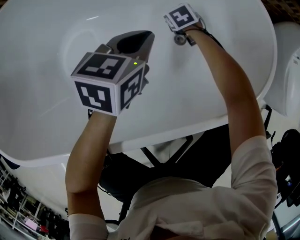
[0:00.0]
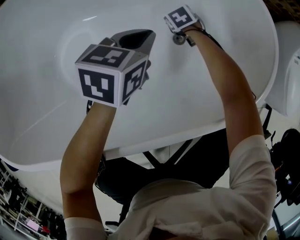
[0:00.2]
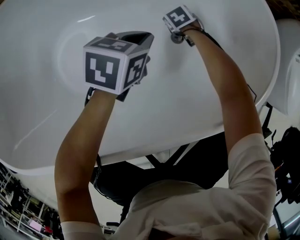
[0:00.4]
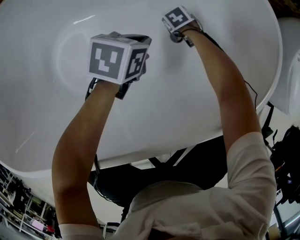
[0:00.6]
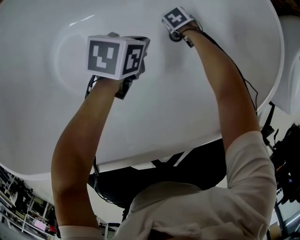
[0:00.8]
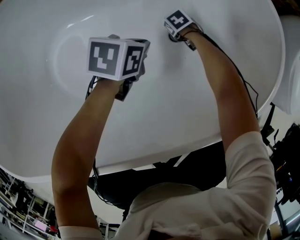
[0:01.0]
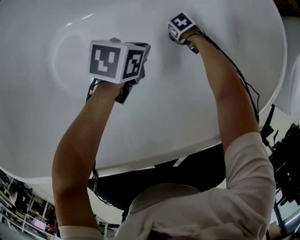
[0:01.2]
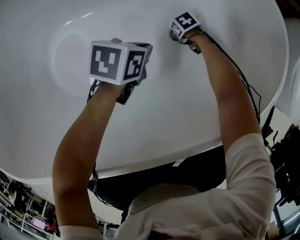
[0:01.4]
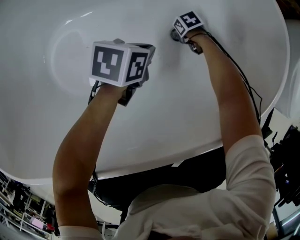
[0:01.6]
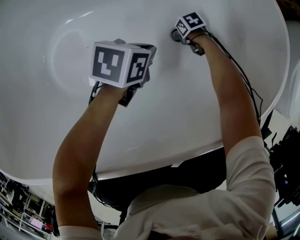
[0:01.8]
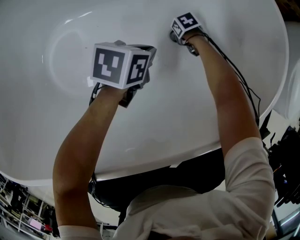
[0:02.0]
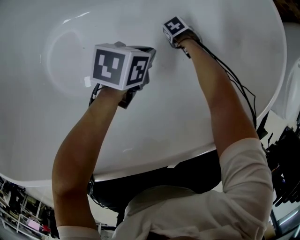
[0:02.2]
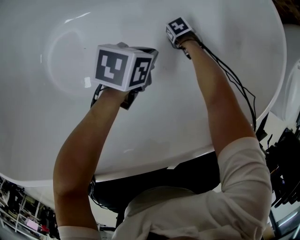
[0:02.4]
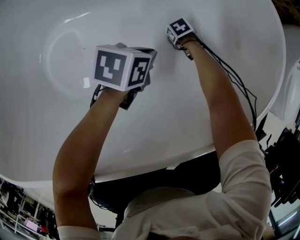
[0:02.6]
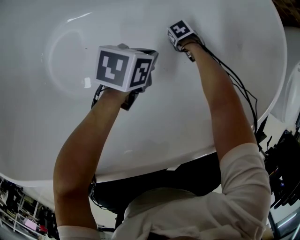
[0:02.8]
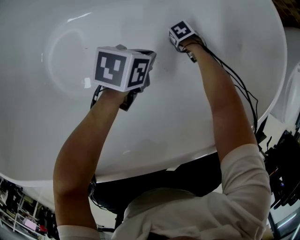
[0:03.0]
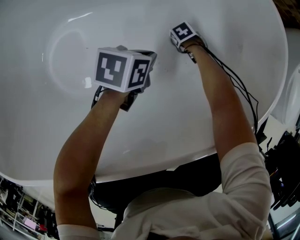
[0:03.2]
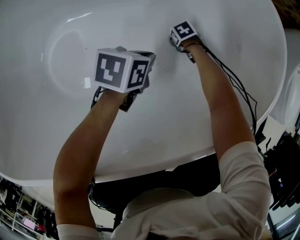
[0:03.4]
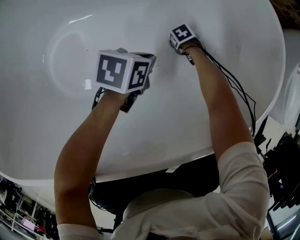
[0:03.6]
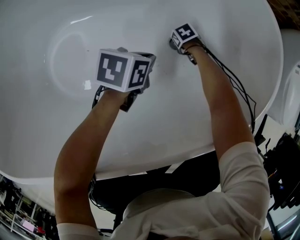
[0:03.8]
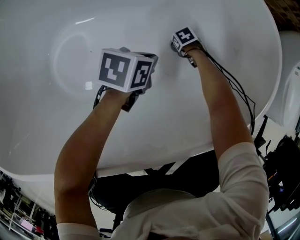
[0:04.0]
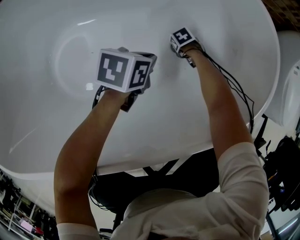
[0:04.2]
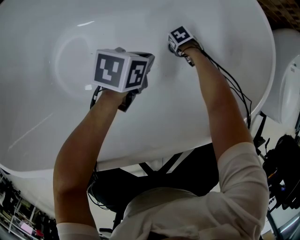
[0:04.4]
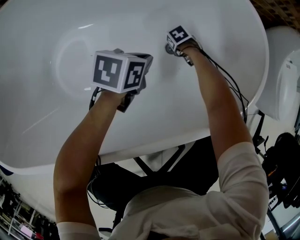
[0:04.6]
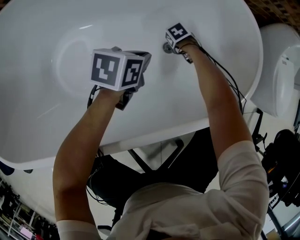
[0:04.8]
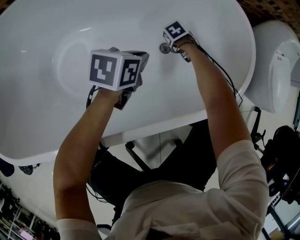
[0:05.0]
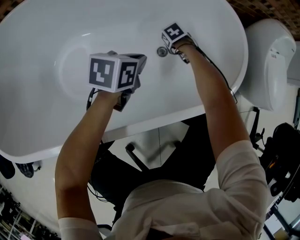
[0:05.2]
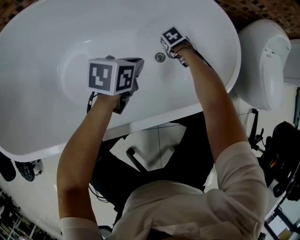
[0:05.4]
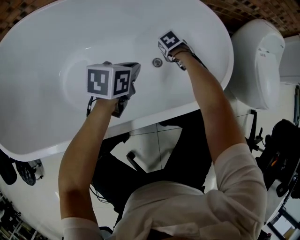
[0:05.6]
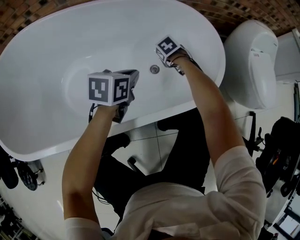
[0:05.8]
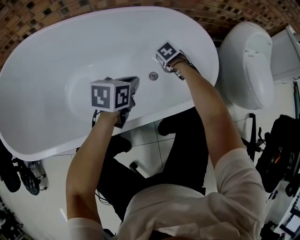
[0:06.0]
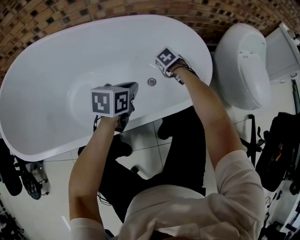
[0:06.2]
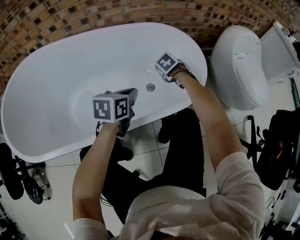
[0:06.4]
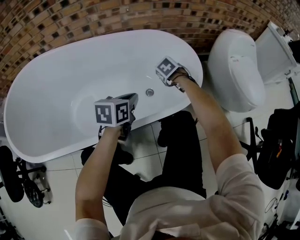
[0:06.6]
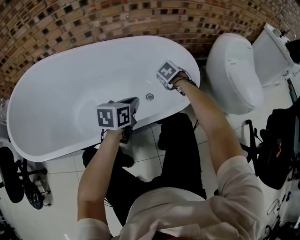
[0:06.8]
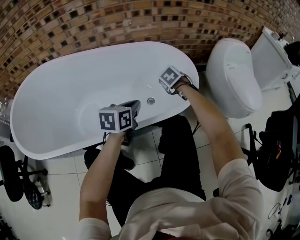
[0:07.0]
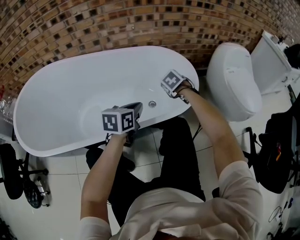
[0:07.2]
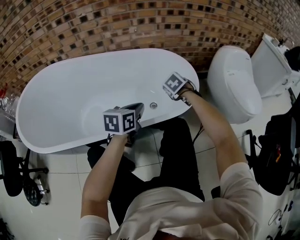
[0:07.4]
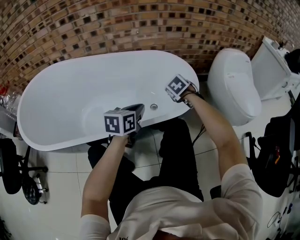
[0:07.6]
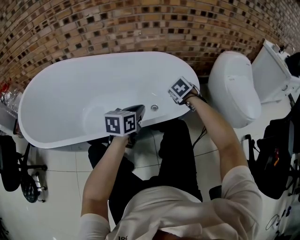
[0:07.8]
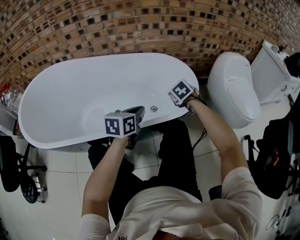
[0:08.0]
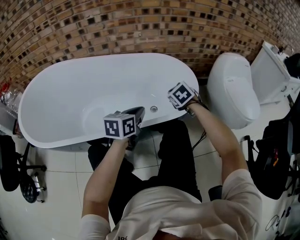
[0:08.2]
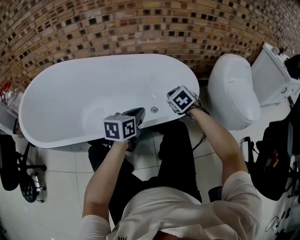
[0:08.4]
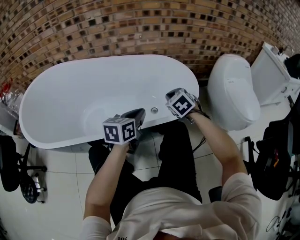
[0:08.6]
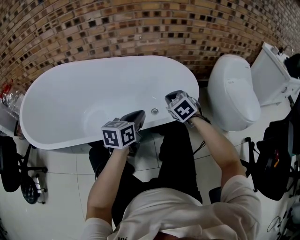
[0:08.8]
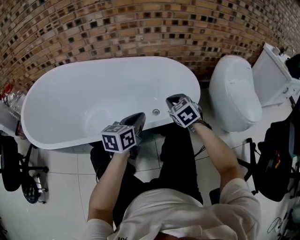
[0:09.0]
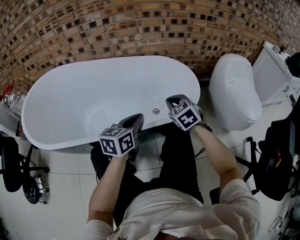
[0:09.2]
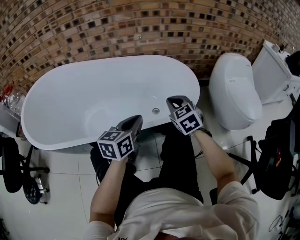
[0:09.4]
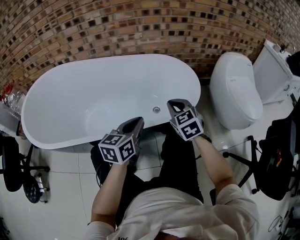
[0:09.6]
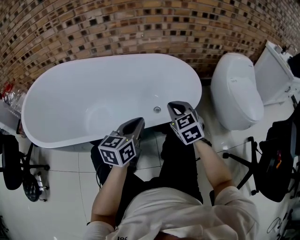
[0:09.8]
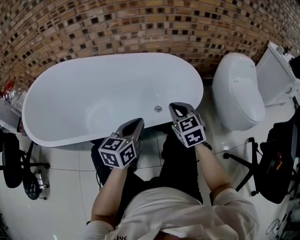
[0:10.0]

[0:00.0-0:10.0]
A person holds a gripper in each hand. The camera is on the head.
0.0 to 1.4 s: Both grippers travel together downward, approximately 15 cm. The left gripper swivels about 30 degrees; the right gripper turns by about 30 degrees.
1.4 to 4.2 s: There are only small adjustments of the grippers.
4.2 to 5.8 s: The right gripper goes about 25 cm upward, while the left gripper is displaced upward by about 15 cm.
5.8 to 7.2 s: The right gripper goes approximately 15 cm upward. The left gripper shifts by some 15 cm.
7.2 to 8.6 s: The left gripper changes place by roughly 5 cm; the right gripper travels backward and upward by about 15 cm, and changes its angle by some 20 degrees.
8.6 to 10.0 s: The grippers both shift backward by roughly 5 cm. The right gripper changes its angle by some 20 degrees.

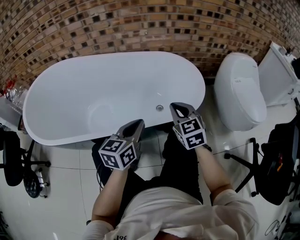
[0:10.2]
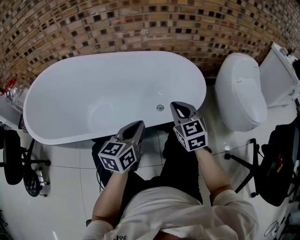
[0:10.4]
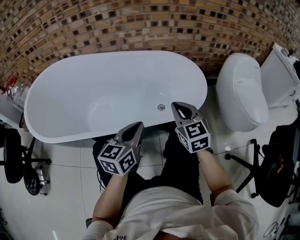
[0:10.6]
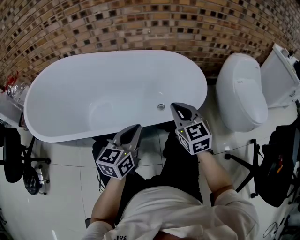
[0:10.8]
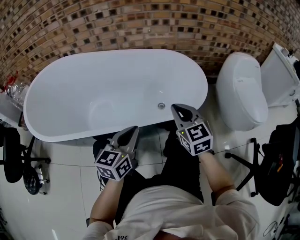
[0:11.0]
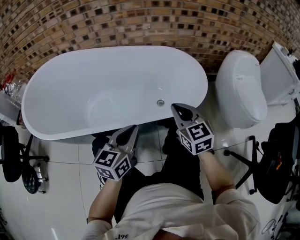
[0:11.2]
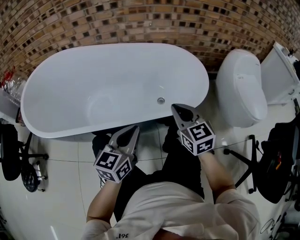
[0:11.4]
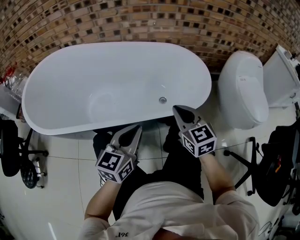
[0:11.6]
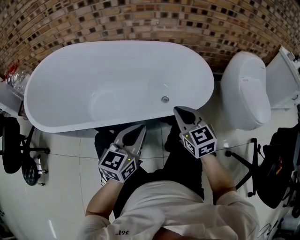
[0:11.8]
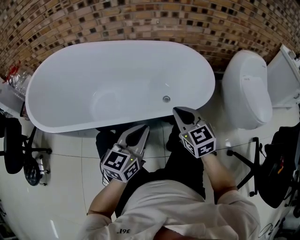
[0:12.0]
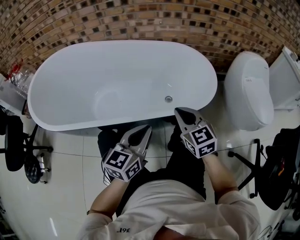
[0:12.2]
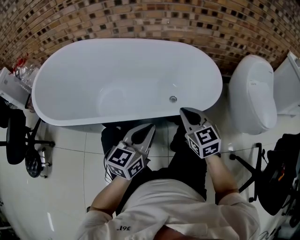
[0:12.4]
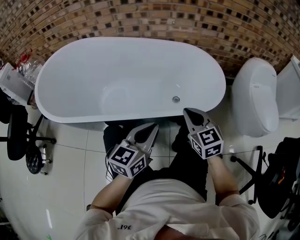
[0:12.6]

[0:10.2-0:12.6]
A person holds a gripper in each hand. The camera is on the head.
10.2 to 11.4 s: The left gripper is displaced backward by roughly 5 cm.
11.4 to 12.6 s: There are only small adjustments of the grippers.

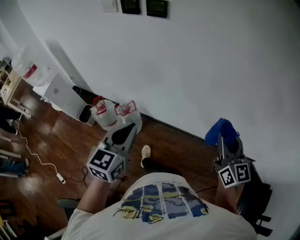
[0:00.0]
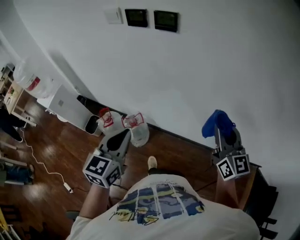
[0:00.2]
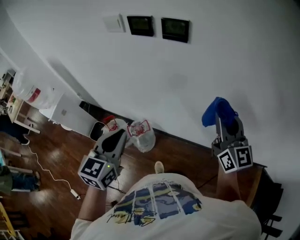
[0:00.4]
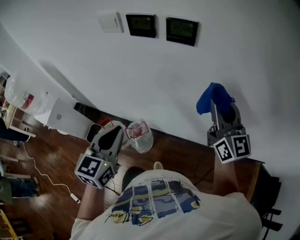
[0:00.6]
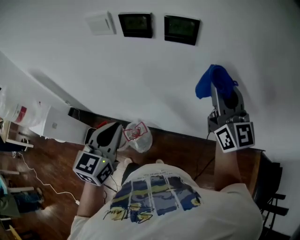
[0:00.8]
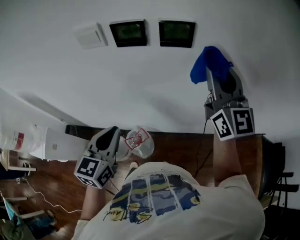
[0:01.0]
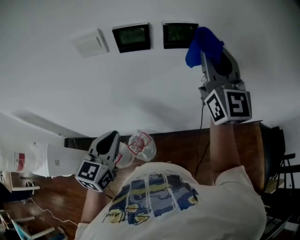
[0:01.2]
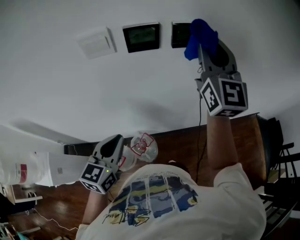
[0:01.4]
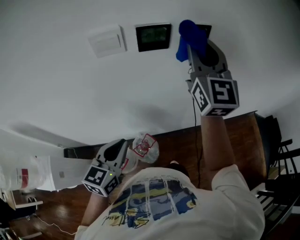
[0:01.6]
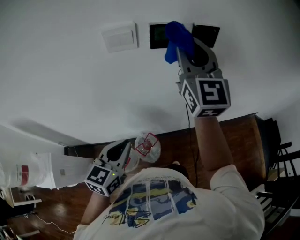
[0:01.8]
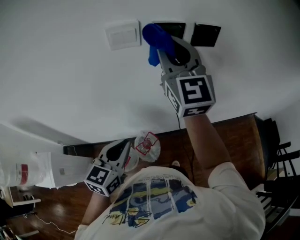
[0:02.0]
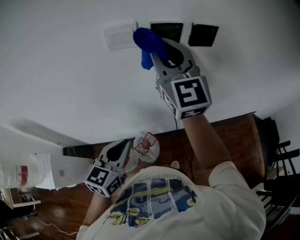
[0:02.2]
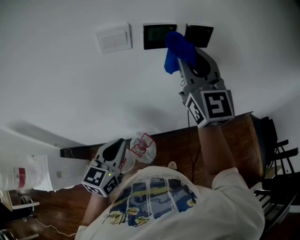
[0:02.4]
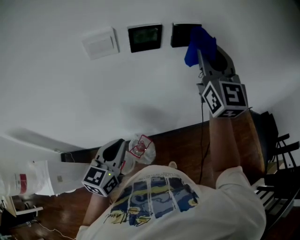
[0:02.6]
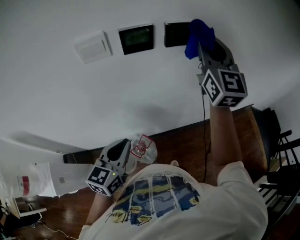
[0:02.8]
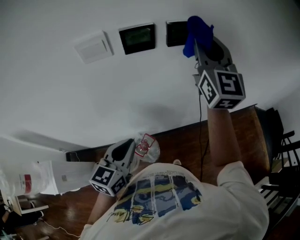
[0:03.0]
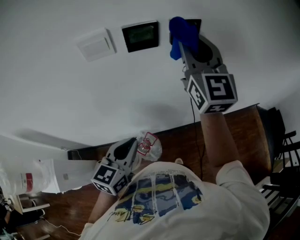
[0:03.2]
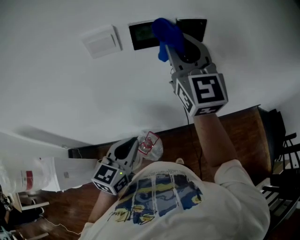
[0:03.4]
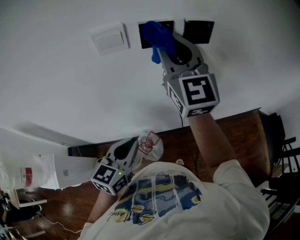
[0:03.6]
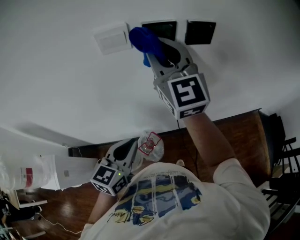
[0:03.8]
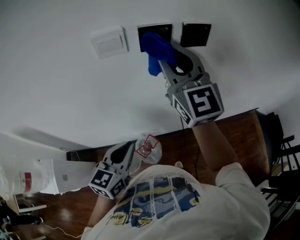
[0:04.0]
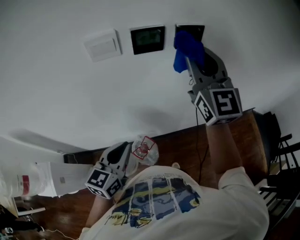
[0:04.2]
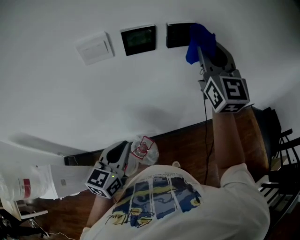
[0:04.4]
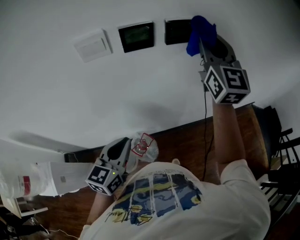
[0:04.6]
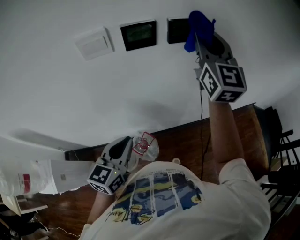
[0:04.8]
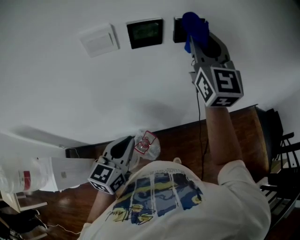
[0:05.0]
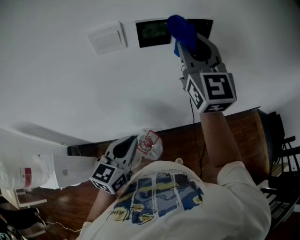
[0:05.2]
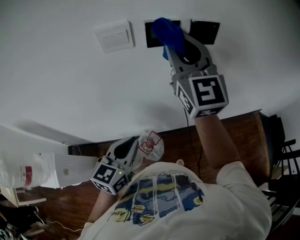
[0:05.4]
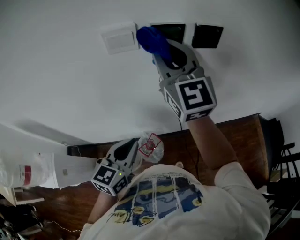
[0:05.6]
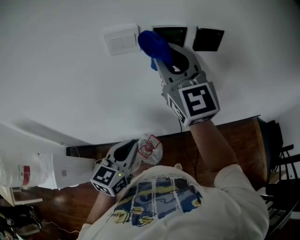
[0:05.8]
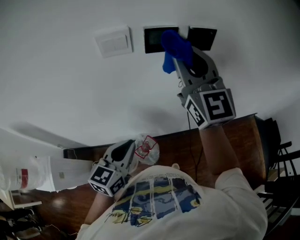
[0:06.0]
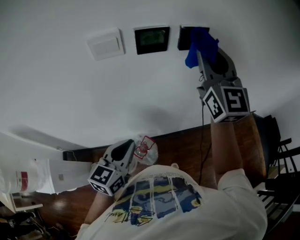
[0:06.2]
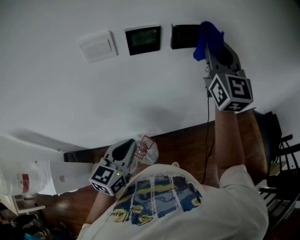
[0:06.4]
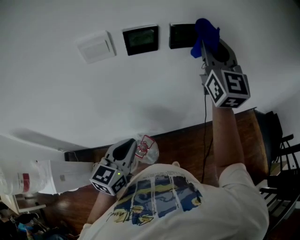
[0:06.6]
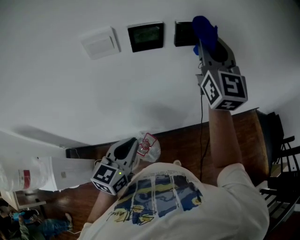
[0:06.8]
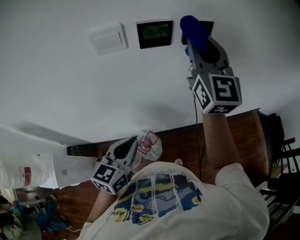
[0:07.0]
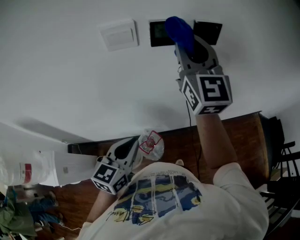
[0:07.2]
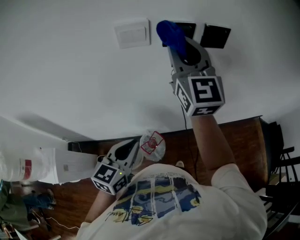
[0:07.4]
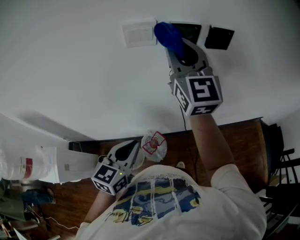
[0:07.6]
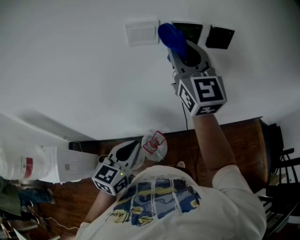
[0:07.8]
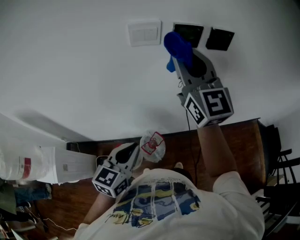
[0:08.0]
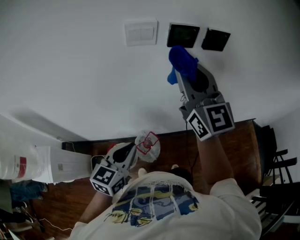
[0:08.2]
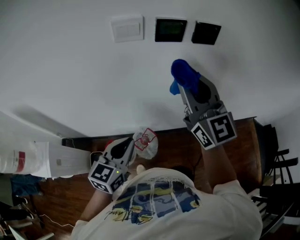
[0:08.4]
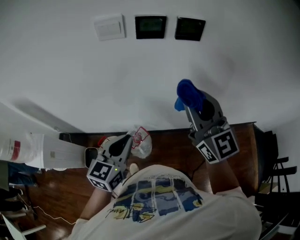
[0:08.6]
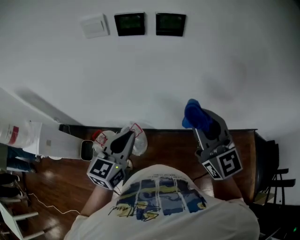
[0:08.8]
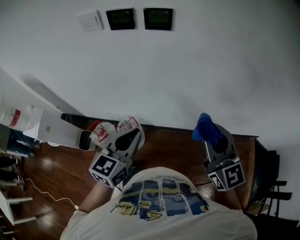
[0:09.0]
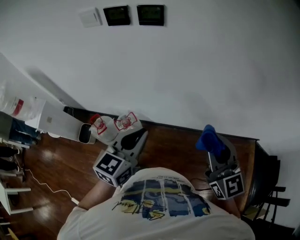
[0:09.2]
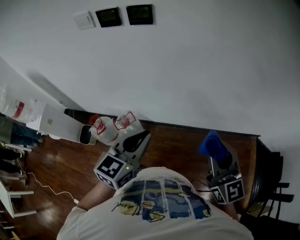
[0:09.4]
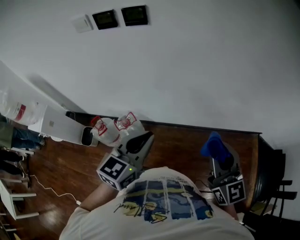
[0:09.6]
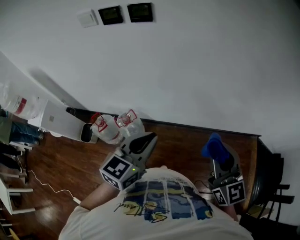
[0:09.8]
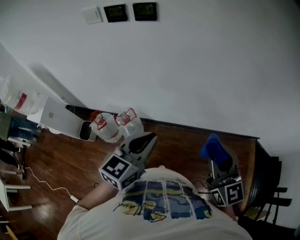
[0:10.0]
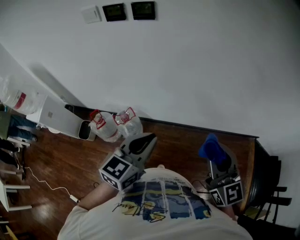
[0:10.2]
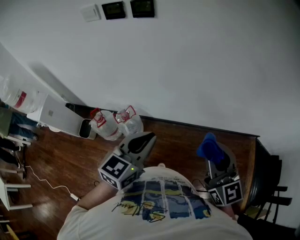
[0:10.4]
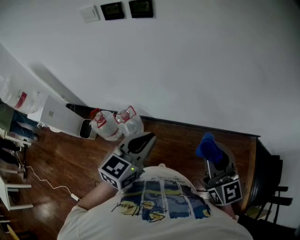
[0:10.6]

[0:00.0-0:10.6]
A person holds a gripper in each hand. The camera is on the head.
0.0 to 1.6 s: The pair of grippers is taken roughly 40 cm. The right gripper turns by some 40 degrees. Meanwhile the left gripper swivels about 30 degrees.
1.6 to 3.0 s: The right gripper reaches roughly 15 cm to the left, then returns.
3.0 to 4.6 s: The right gripper travels to the left and back again, approximately 20 cm each way.
4.6 to 6.0 s: The right gripper moves to the left, approximately 15 cm.
6.0 to 7.6 s: The right gripper shifts approximately 10 cm to the left, while the left gripper changes place by roughly 5 cm.
7.6 to 9.0 s: The right gripper shifts approximately 40 cm to the right and backward, and changes its angle by some 20 degrees; the left gripper heads to the right, covering some 30 cm.
9.0 to 10.6 s: The left gripper shifts about 20 cm to the right and backward; the right gripper heads backward and to the right, covering roughly 20 cm.

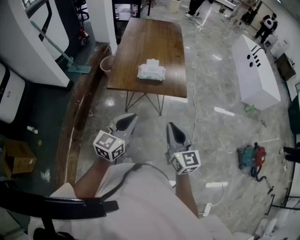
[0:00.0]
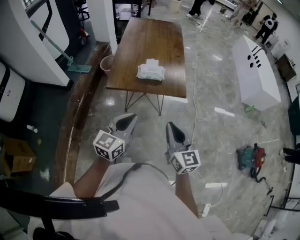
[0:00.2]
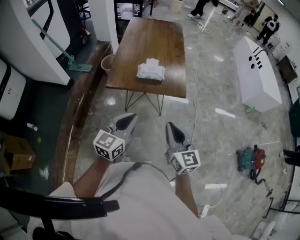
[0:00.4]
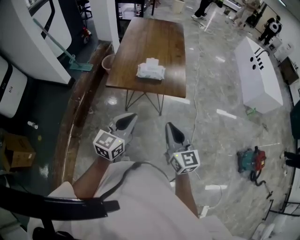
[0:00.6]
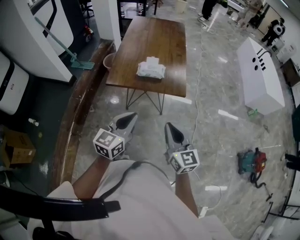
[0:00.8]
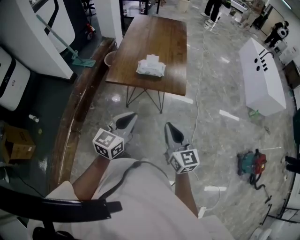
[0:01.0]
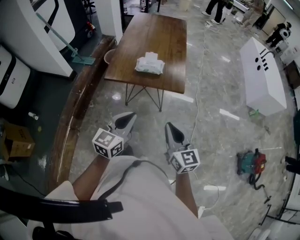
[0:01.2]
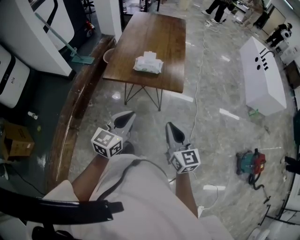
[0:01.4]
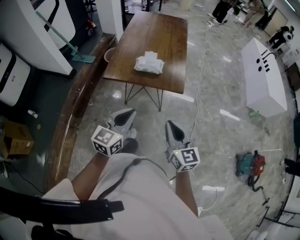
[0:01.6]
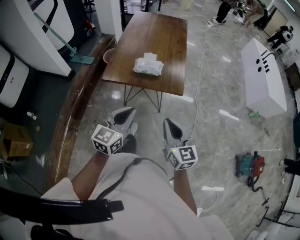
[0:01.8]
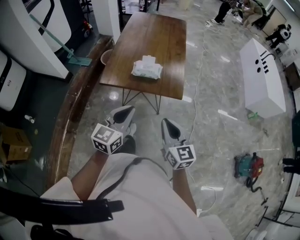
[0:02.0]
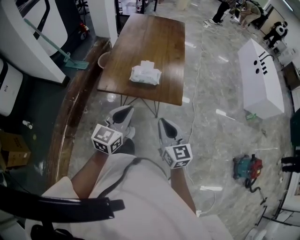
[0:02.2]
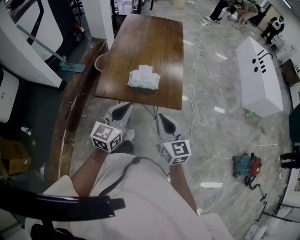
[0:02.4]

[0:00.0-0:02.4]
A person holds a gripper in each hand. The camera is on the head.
0.0 to 1.2 s: The grippers both shift to the right by roughly 5 cm.
1.2 to 2.4 s: Both grippers move forward, some 20 cm.
